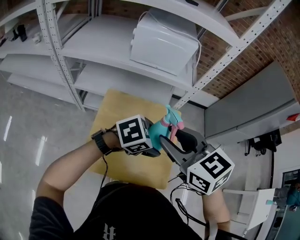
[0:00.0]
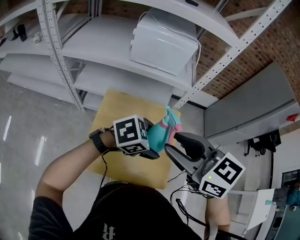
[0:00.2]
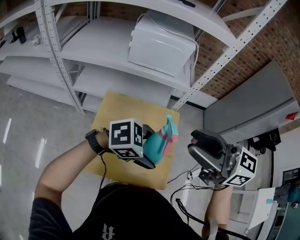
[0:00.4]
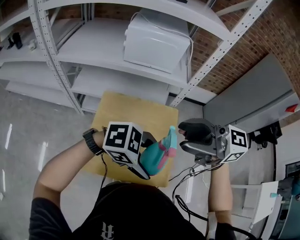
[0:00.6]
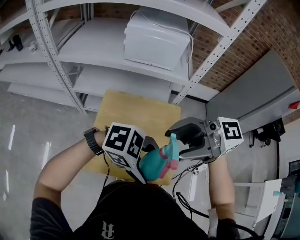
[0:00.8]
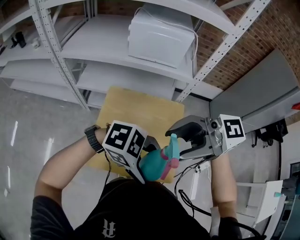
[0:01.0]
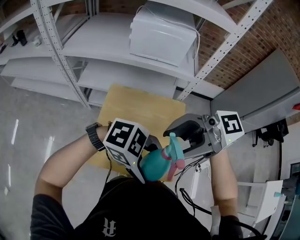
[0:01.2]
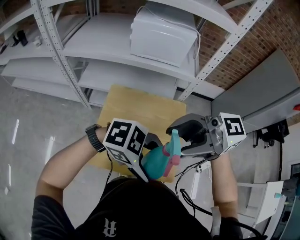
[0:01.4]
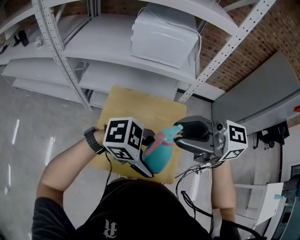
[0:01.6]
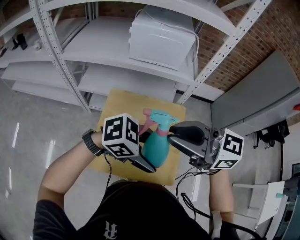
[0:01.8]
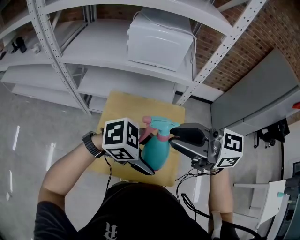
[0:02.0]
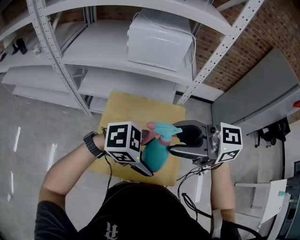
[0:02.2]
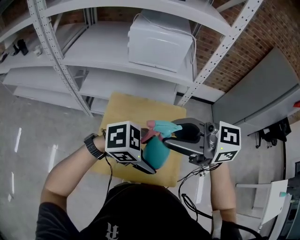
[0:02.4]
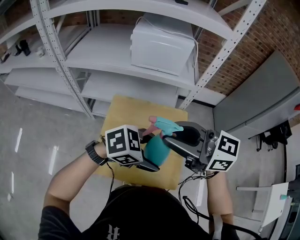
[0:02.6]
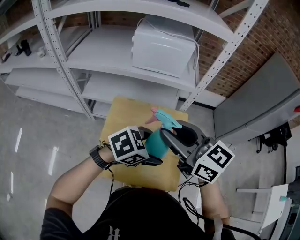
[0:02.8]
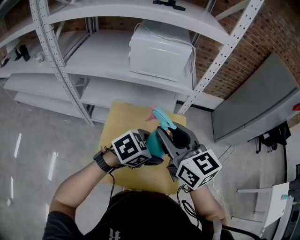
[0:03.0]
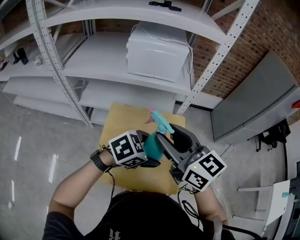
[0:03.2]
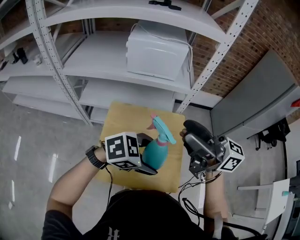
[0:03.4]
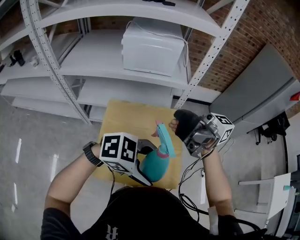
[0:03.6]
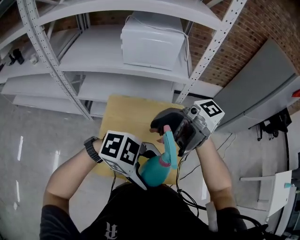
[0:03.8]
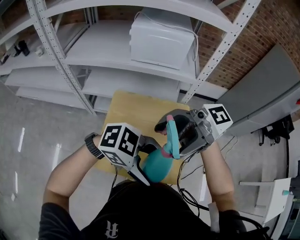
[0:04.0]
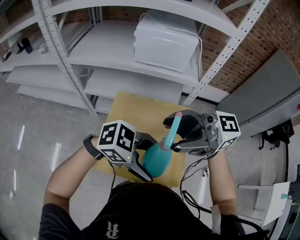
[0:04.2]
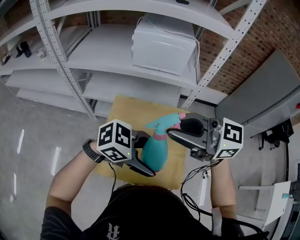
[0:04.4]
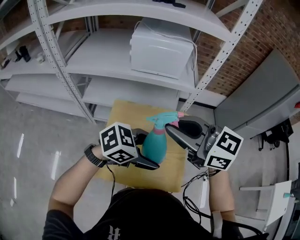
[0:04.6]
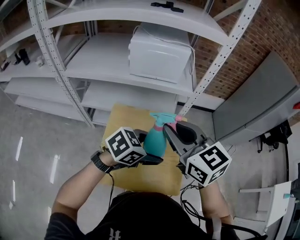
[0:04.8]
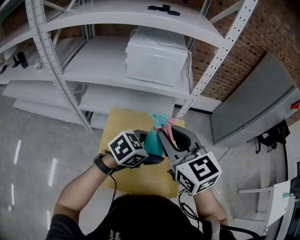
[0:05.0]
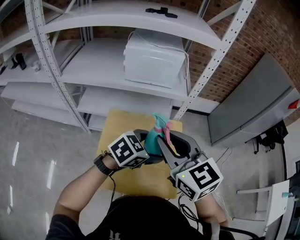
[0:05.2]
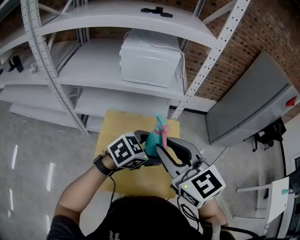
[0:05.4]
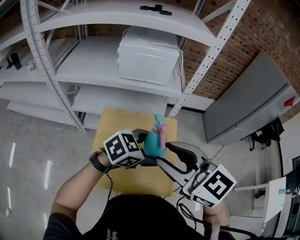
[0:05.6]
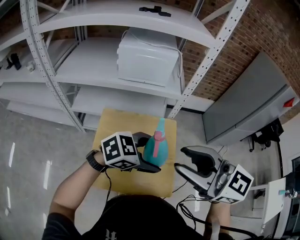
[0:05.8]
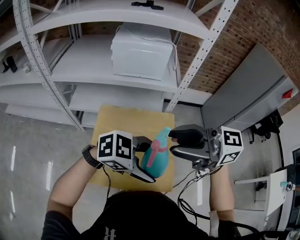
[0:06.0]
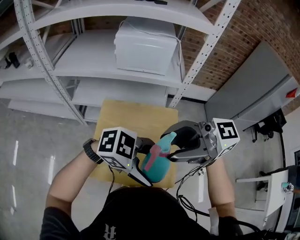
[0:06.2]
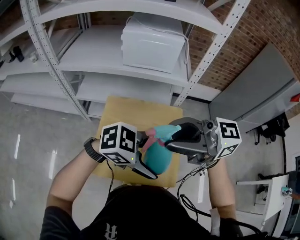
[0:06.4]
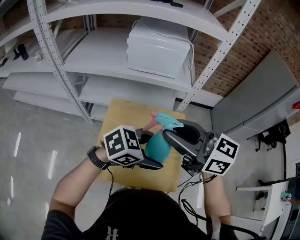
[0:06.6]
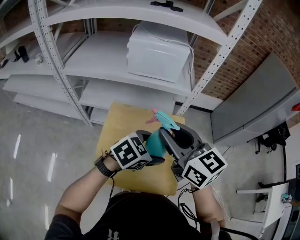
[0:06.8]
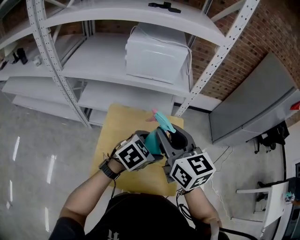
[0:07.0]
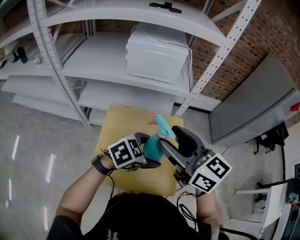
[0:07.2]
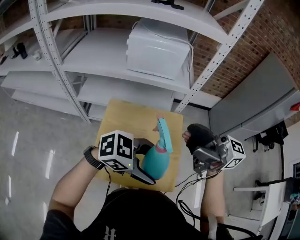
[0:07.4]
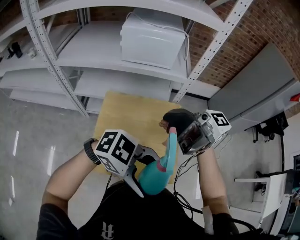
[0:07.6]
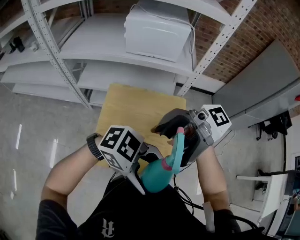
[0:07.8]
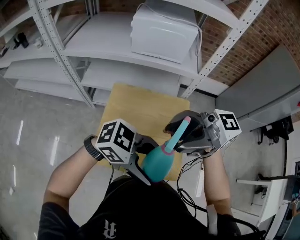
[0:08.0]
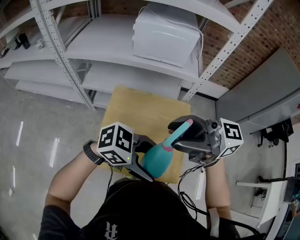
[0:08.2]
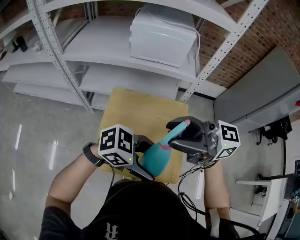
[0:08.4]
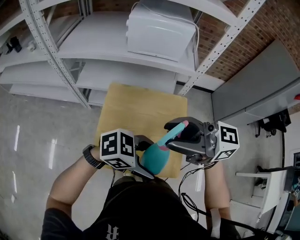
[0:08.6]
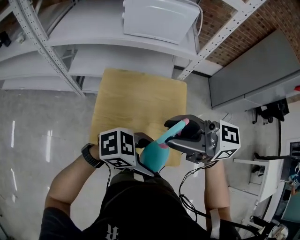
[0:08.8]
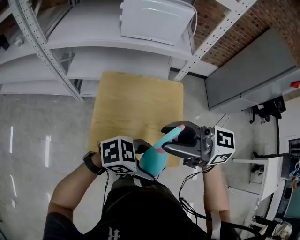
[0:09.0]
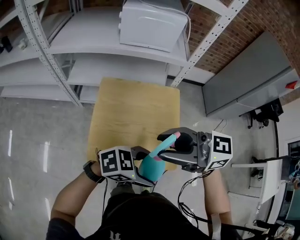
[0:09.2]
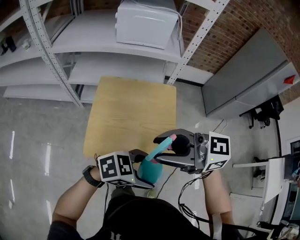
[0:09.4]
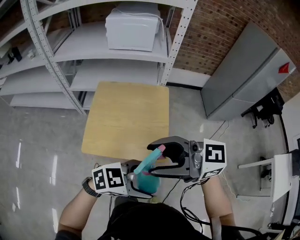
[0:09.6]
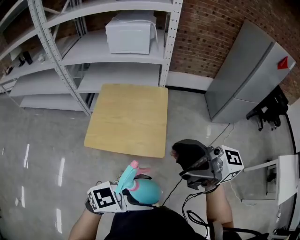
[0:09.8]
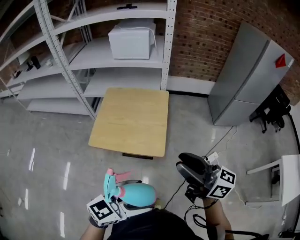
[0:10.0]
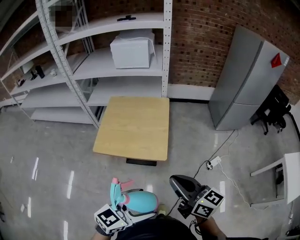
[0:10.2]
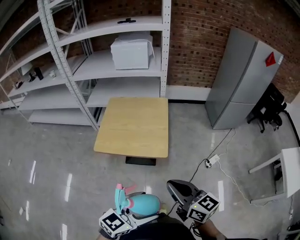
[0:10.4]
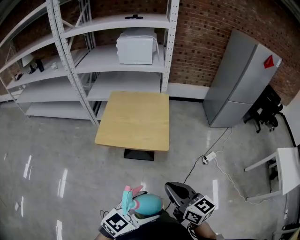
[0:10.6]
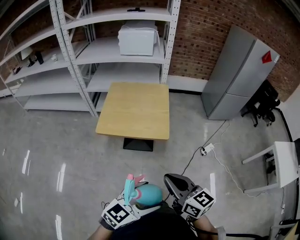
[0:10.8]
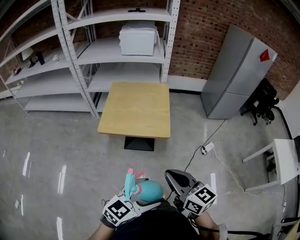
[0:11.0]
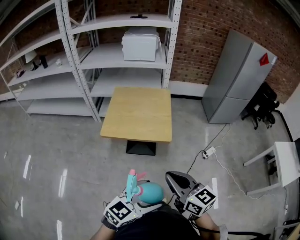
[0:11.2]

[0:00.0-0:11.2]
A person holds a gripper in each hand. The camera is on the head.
0.0 to 1.6 s: The right gripper moves upward, approximately 5 cm, and angles its fingers upward, by approximately 30 degrees. The left gripper shifts by about 10 cm, and changes its angle by roughly 30 degrees.
1.6 to 3.2 s: The right gripper moves about 5 cm, and swivels approximately 40 degrees; the left gripper ends up roughly 10 cm from where it was, and swivels roughly 30 degrees.
3.2 to 4.8 s: The right gripper opens, then closes once more.
4.8 to 6.4 s: The right gripper changes place by roughly 10 cm, and swivels roughly 60 degrees. The left gripper moves about 10 cm, and turns by some 30 degrees.
6.4 to 8.0 s: The left gripper goes downward and returns, roughly 10 cm each way. The right gripper goes downward and returns, approximately 5 cm each way, and opens, then closes once more.
8.0 to 9.6 s: The left gripper changes place by approximately 25 cm, and changes its angle by roughly 20 degrees, while the right gripper shifts by about 25 cm, and swivels approximately 30 degrees.
9.6 to 11.2 s: The right gripper ends up approximately 35 cm from where it was, swivels roughly 50 degrees, and closes, while the left gripper changes place by approximately 35 cm, and changes its angle by some 40 degrees.

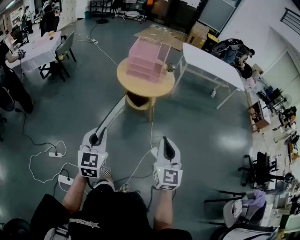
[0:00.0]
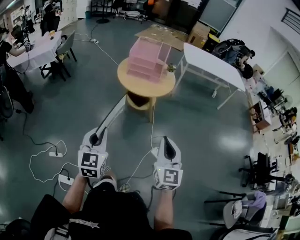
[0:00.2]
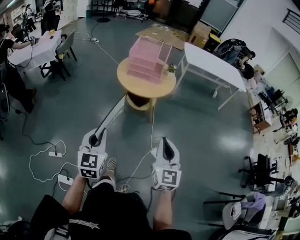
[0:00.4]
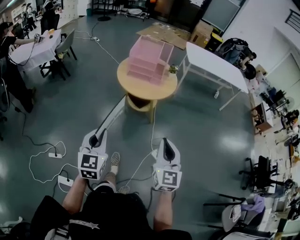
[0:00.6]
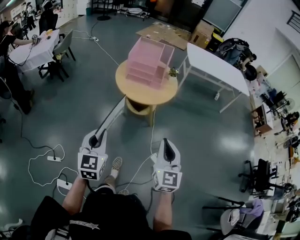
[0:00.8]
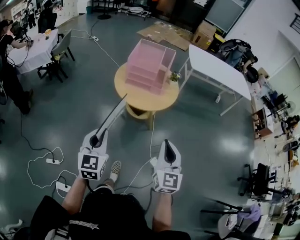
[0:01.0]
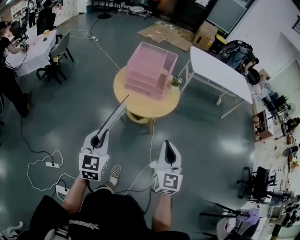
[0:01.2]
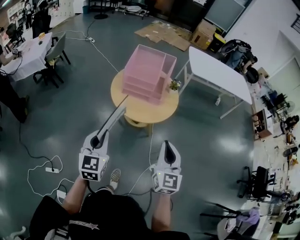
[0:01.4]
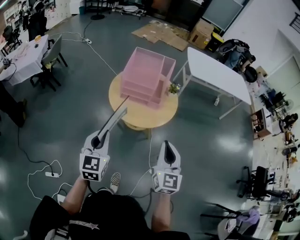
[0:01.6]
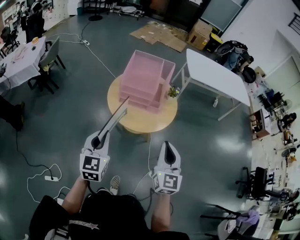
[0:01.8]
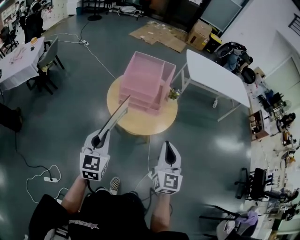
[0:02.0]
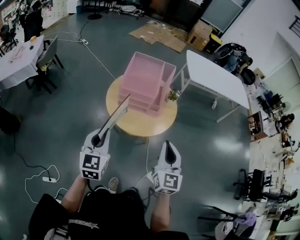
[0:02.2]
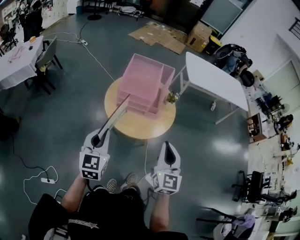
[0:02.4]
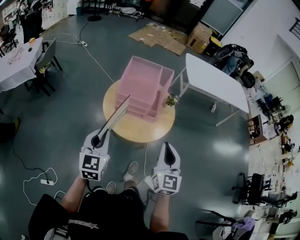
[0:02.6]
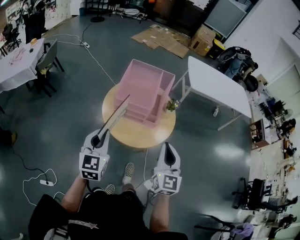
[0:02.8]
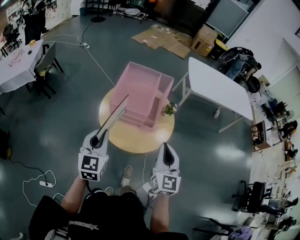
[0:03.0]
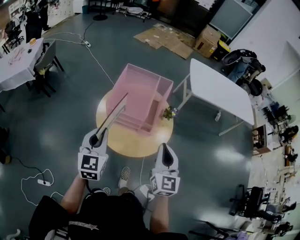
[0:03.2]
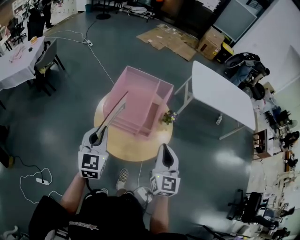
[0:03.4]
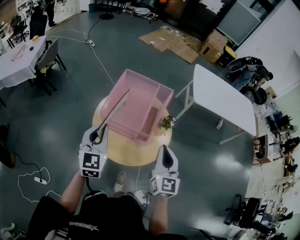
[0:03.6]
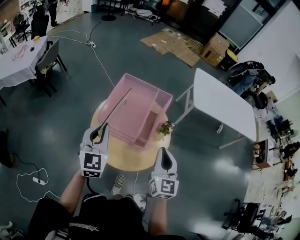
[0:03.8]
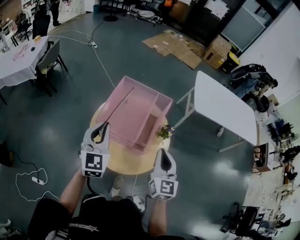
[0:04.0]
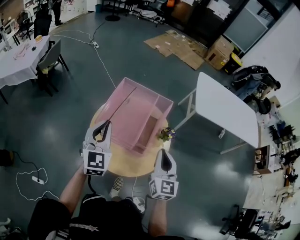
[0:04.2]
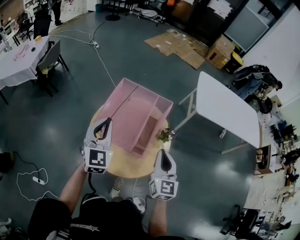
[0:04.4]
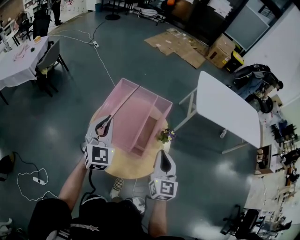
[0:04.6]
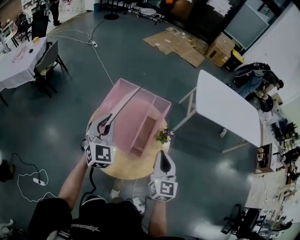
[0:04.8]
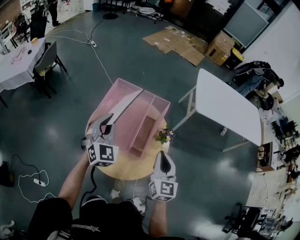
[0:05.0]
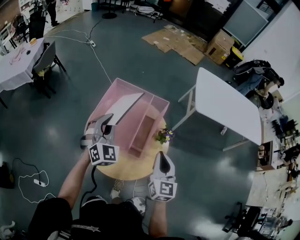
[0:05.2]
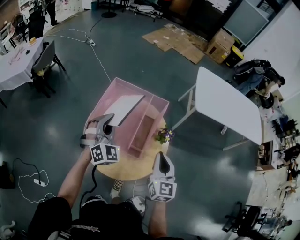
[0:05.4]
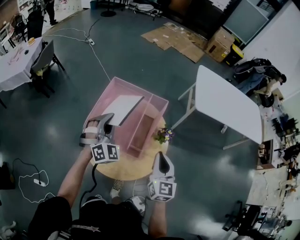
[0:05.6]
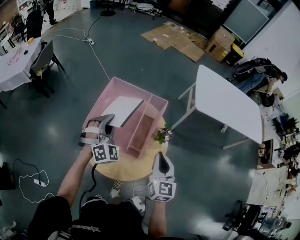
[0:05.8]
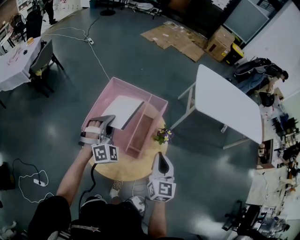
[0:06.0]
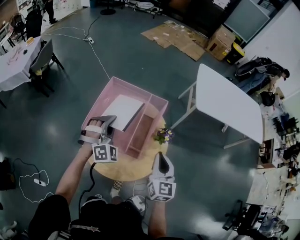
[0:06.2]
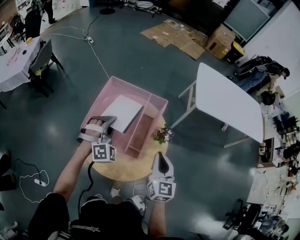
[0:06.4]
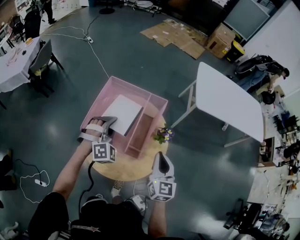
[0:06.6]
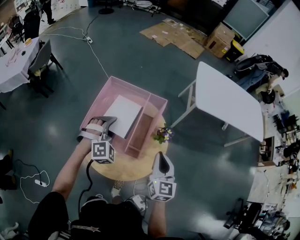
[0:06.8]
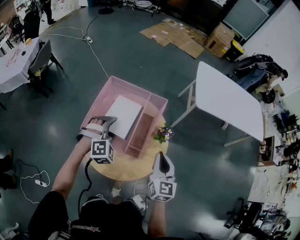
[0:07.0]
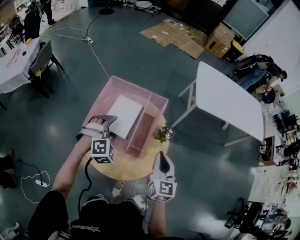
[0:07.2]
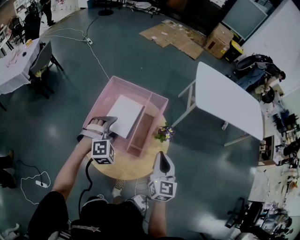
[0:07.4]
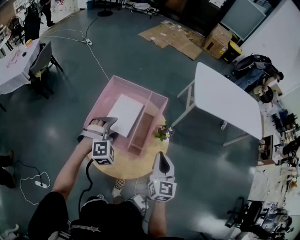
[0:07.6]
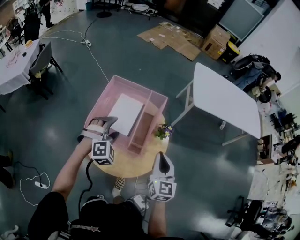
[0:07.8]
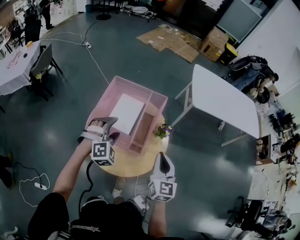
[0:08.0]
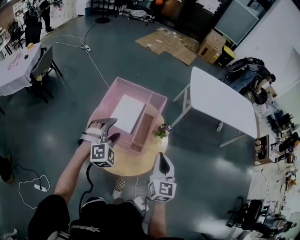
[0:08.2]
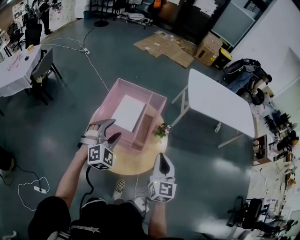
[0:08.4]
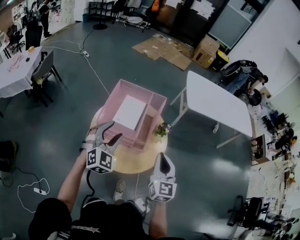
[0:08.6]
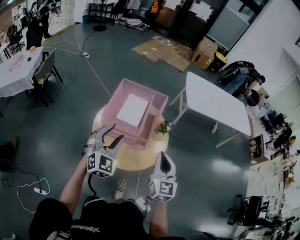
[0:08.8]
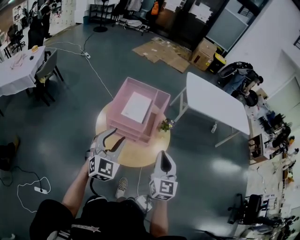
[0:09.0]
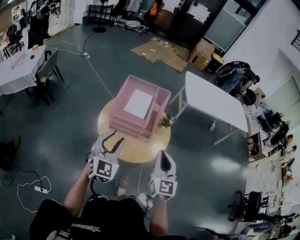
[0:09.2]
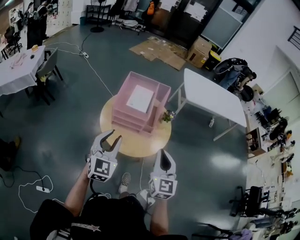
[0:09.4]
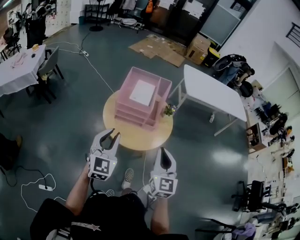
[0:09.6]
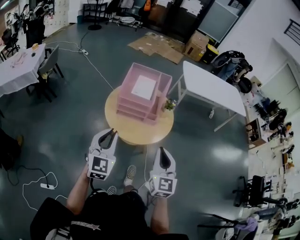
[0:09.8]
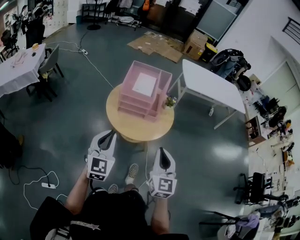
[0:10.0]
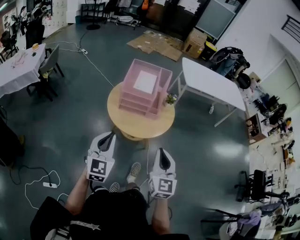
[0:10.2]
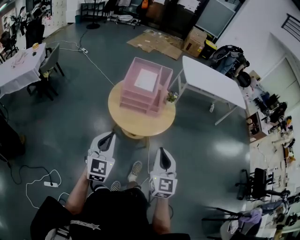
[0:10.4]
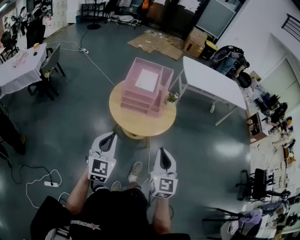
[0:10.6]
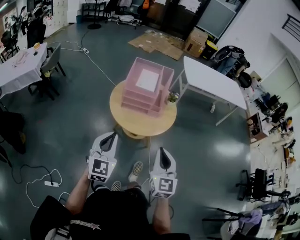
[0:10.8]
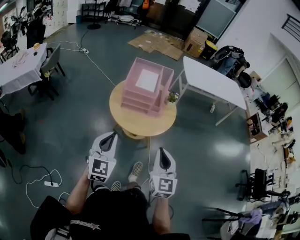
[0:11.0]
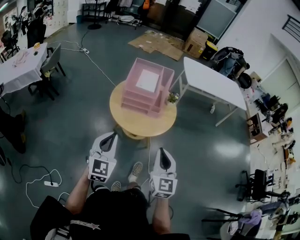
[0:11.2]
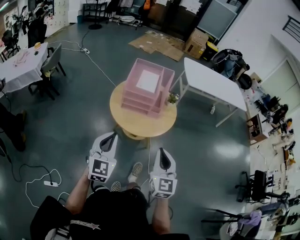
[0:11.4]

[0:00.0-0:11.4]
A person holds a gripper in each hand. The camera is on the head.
0.0 to 1.4 s: The grippers both shift forward by some 25 cm.
1.4 to 2.8 s: Both grippers travel together forward, some 20 cm.
2.8 to 4.2 s: Both grippers travel together forward, some 20 cm.
4.2 to 5.6 s: The right gripper shifts by roughly 5 cm; the left gripper goes roughly 10 cm forward, downward and to the right, and rolls clockwise, seen from behind, by approximately 40 degrees.
5.6 to 7.2 s: The left gripper moves downward, about 10 cm, changes its angle by some 30 degrees, and opens its fingers.
7.2 to 8.6 s: The right gripper is displaced backward and upward by about 10 cm. The left gripper moves upward and backward, approximately 15 cm, and turns by about 30 degrees.
8.6 to 10.0 s: Both grippers move backward, approximately 25 cm. The left gripper changes its angle by roughly 30 degrees, and closes up.
10.0 to 11.4 s: The grippers stay close to where they were, moving slightly.

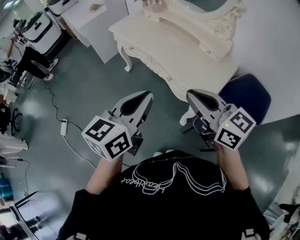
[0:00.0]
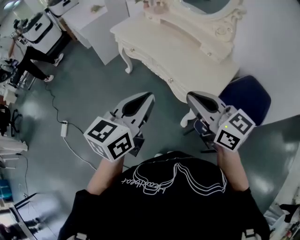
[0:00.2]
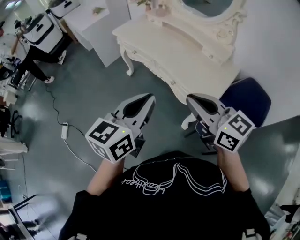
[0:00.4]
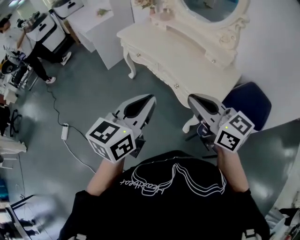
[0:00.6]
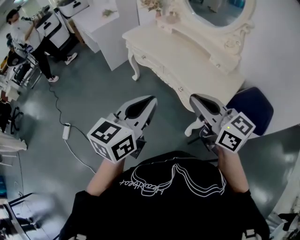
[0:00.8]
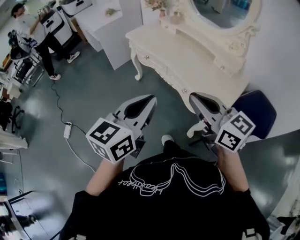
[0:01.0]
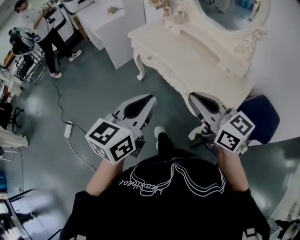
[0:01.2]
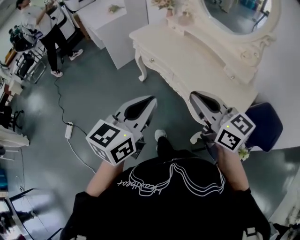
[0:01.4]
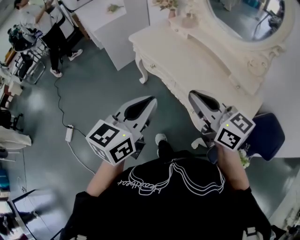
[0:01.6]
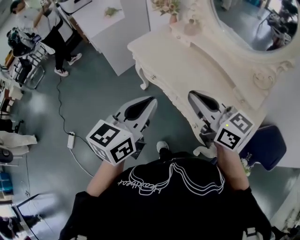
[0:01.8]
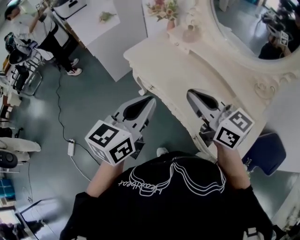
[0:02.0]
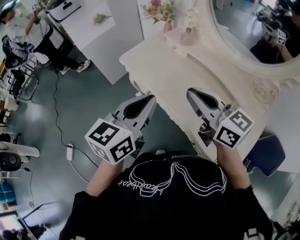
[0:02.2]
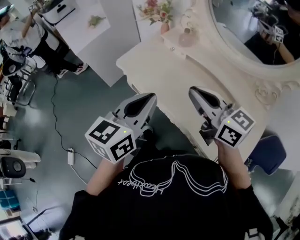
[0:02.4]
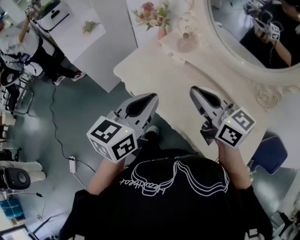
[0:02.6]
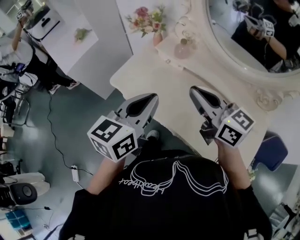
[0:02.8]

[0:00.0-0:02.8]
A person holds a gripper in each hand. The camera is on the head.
0.0 to 1.4 s: Both grippers move forward and to the left, about 15 cm.
1.4 to 2.8 s: Both grippers are carried forward, roughly 40 cm.
